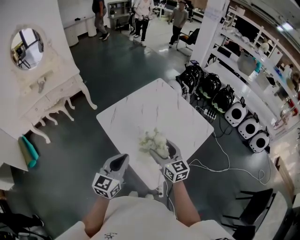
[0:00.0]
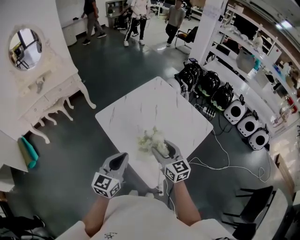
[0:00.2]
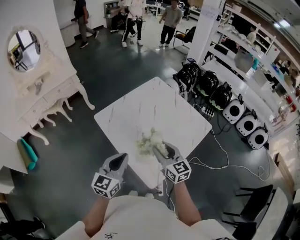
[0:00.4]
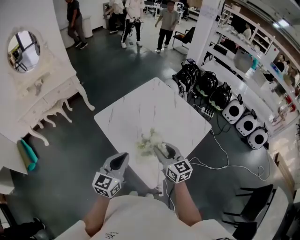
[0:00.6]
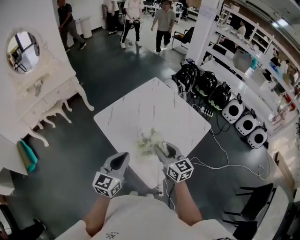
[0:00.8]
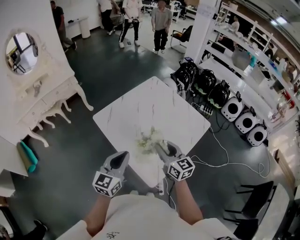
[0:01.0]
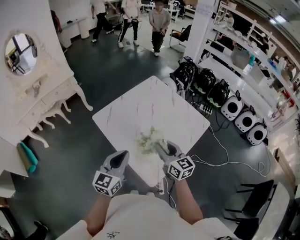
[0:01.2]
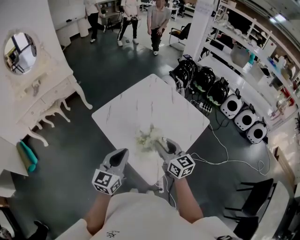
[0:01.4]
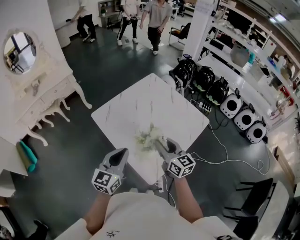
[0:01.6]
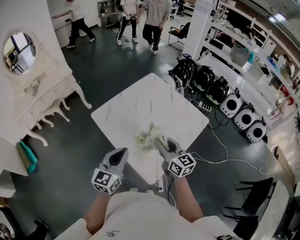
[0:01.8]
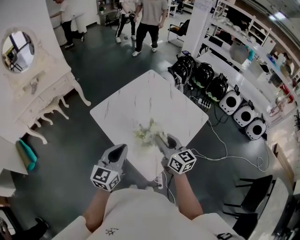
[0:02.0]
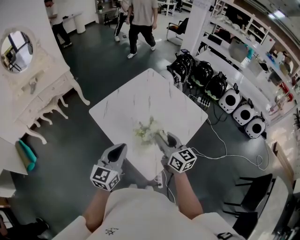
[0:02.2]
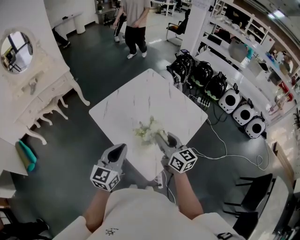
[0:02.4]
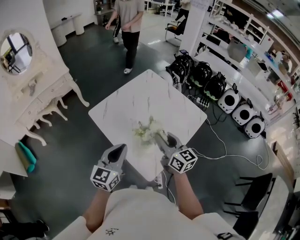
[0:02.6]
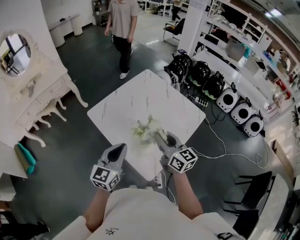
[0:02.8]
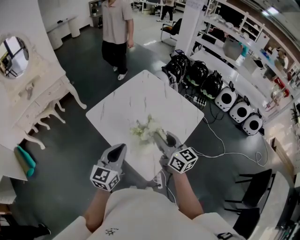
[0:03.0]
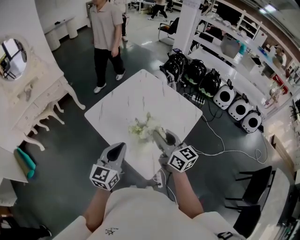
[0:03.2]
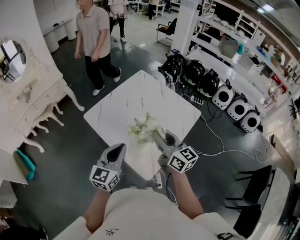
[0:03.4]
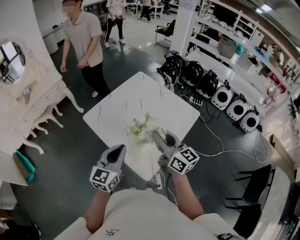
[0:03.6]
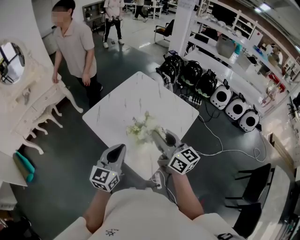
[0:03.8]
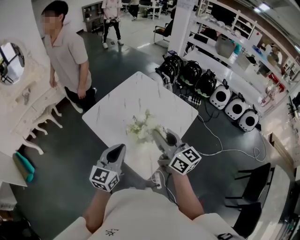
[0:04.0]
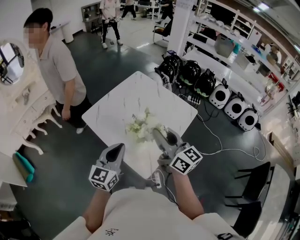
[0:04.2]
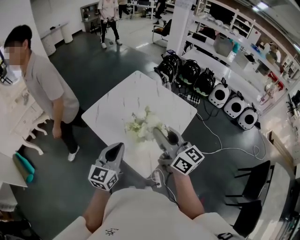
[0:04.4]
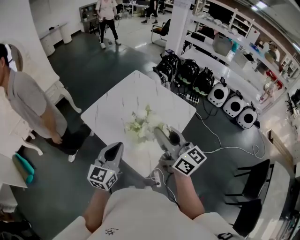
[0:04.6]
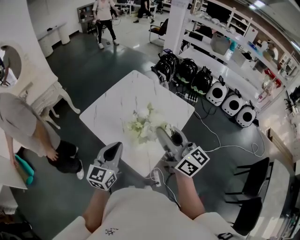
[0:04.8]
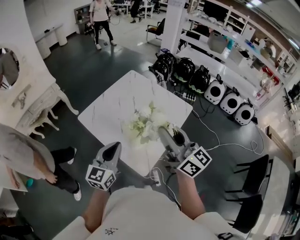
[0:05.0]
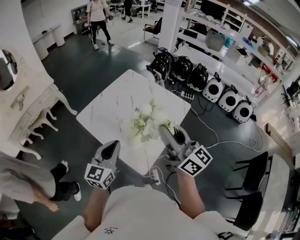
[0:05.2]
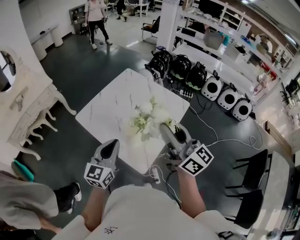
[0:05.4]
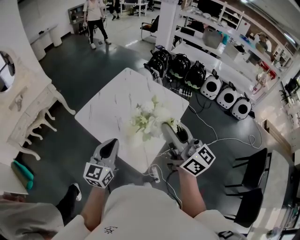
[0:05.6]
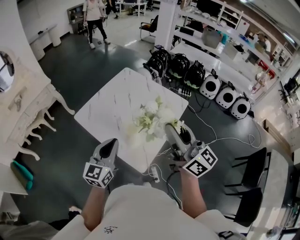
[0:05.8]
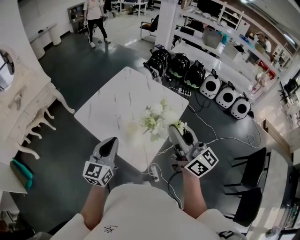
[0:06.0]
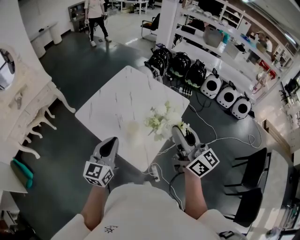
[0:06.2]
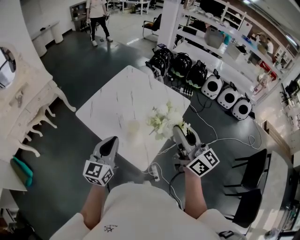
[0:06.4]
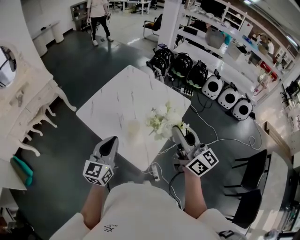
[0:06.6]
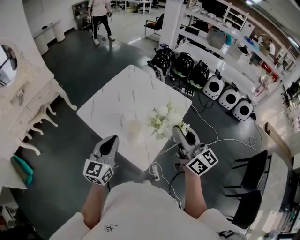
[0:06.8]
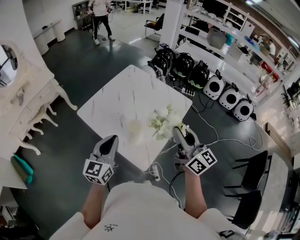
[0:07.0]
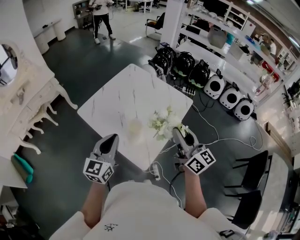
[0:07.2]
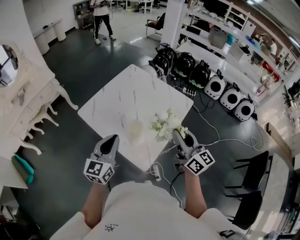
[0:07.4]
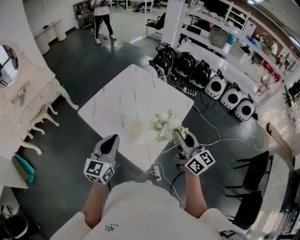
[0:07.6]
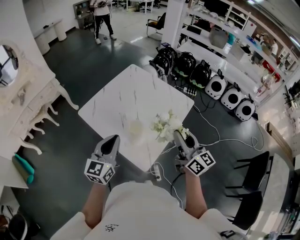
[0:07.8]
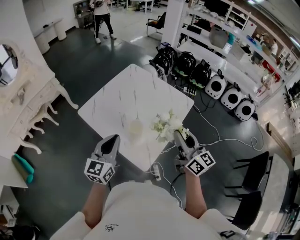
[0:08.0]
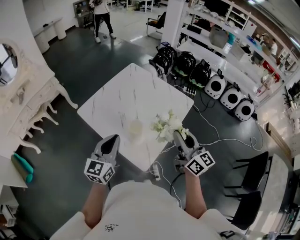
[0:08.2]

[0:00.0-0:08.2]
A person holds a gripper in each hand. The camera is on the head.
0:00.0 to 0:01.6: The right gripper closes its fingers.
0:01.6 to 0:03.2: The right gripper moves upward, approximately 5 cm.
0:03.2 to 0:05.0: The right gripper is displaced upward and backward by roughly 15 cm.
0:05.0 to 0:06.6: The right gripper changes place by approximately 5 cm.
0:06.6 to 0:08.2: The right gripper moves downward, roughly 5 cm.

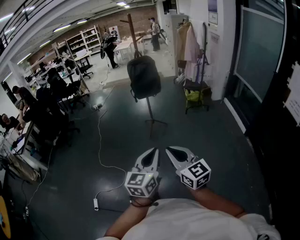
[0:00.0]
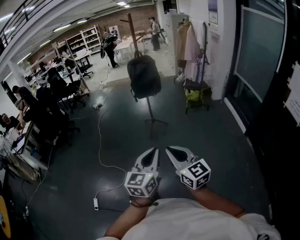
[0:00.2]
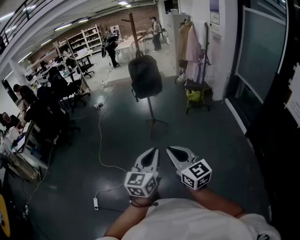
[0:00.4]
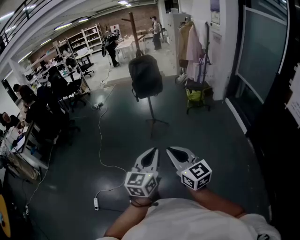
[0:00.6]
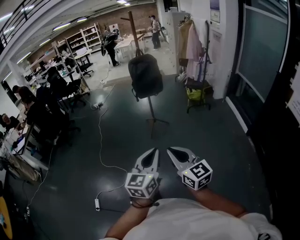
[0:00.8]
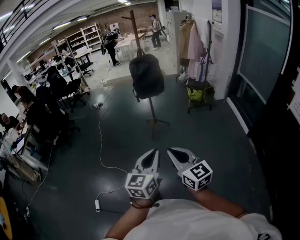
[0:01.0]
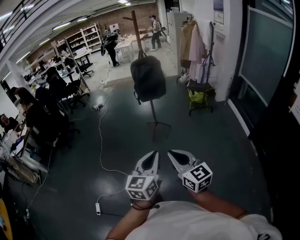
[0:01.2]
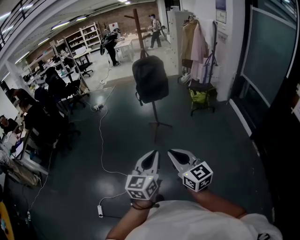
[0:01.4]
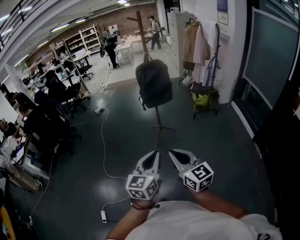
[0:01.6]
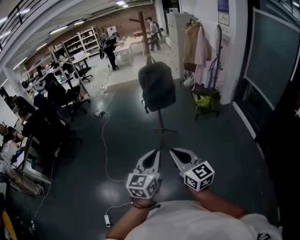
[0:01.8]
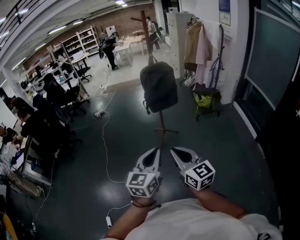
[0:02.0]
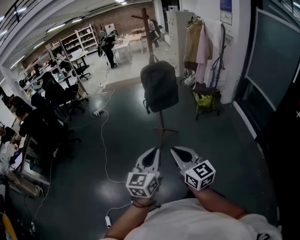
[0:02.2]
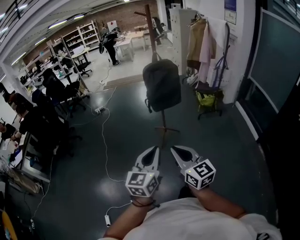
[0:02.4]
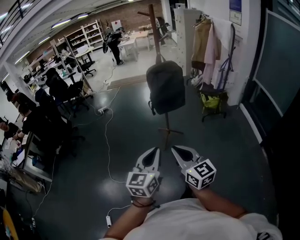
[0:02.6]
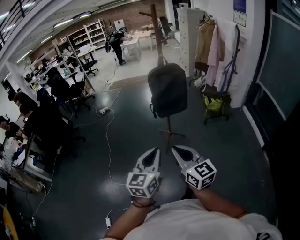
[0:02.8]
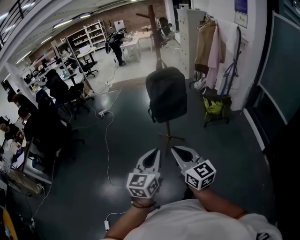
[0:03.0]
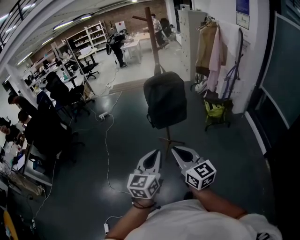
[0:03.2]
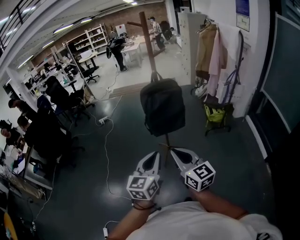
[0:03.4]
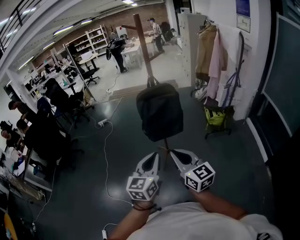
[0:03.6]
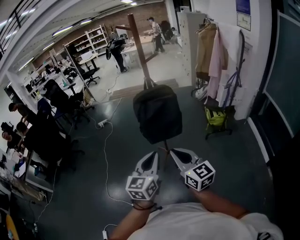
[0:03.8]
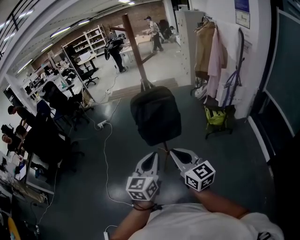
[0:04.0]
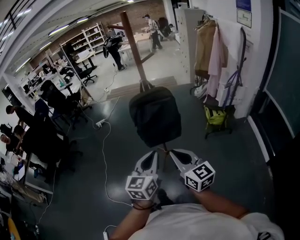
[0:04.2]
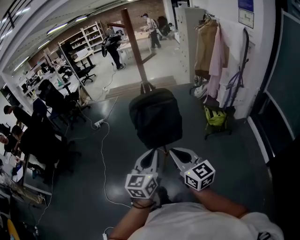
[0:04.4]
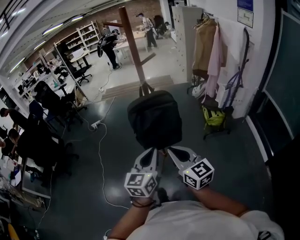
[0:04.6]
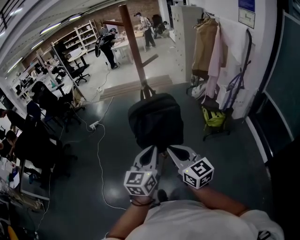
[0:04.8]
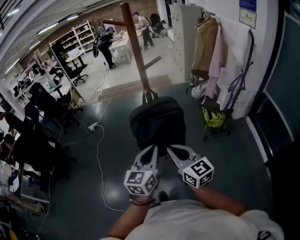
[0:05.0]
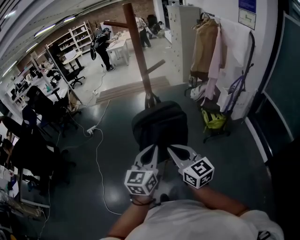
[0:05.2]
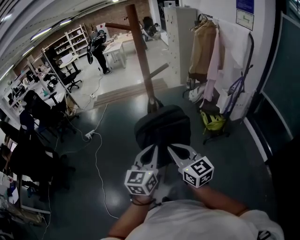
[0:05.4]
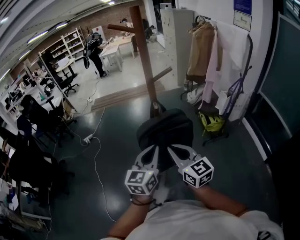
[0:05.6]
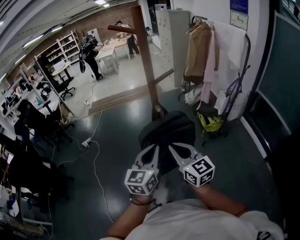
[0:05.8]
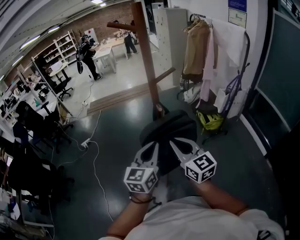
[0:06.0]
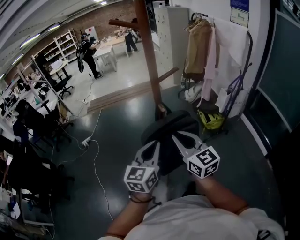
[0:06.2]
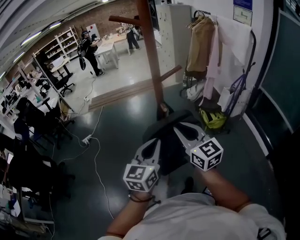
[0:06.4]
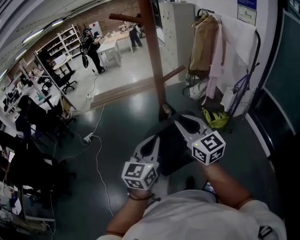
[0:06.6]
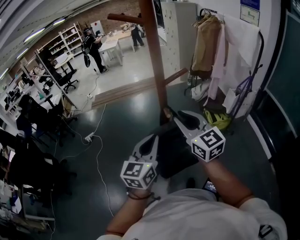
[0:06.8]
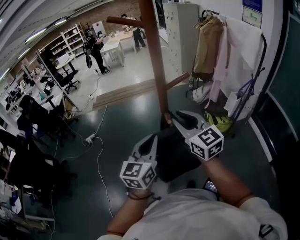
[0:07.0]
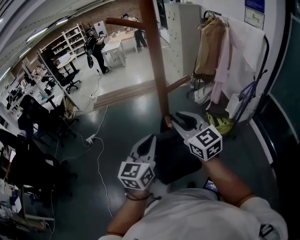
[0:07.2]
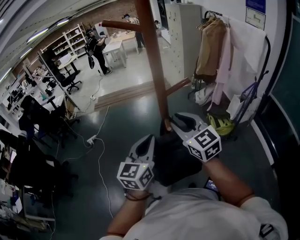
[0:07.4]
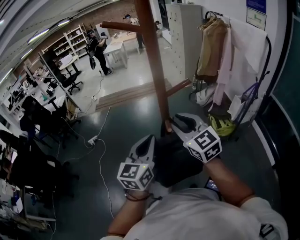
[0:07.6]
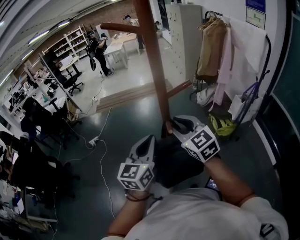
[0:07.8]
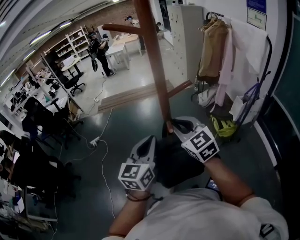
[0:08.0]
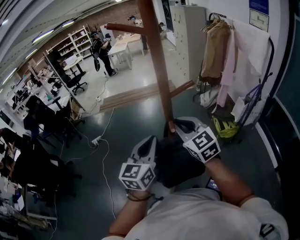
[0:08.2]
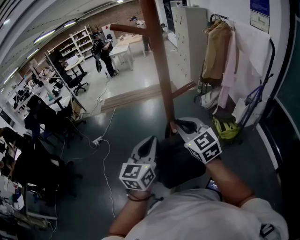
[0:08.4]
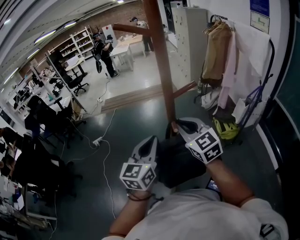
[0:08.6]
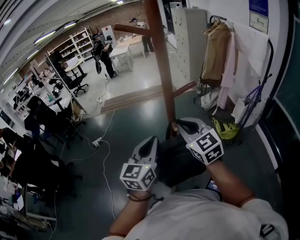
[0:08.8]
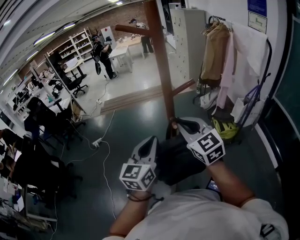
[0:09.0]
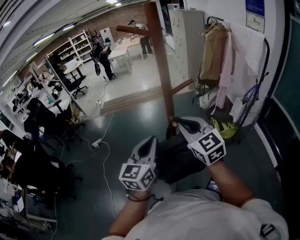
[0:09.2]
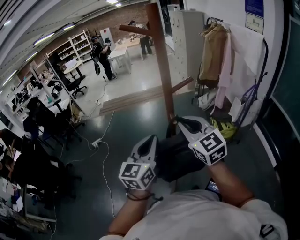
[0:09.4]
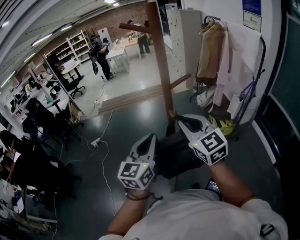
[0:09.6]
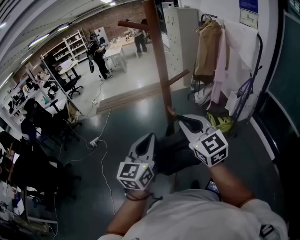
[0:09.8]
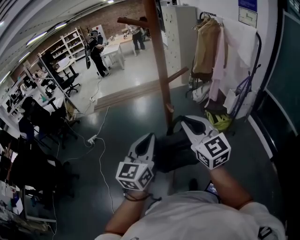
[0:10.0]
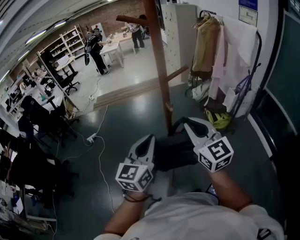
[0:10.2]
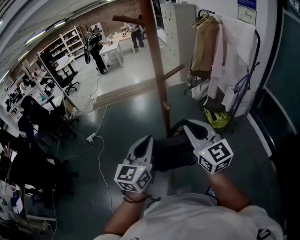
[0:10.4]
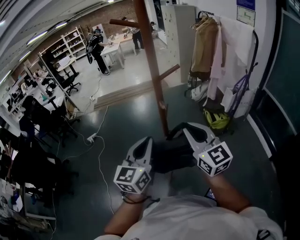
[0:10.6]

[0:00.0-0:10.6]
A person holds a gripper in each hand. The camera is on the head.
0:00.0 to 0:01.6: The grippers both shift forward and to the left by approximately 25 cm.
0:01.6 to 0:03.0: Both grippers move forward, some 25 cm.
0:03.0 to 0:04.6: The two grippers go about 35 cm forward and to the right.
0:04.6 to 0:06.0: Both grippers move forward, roughly 20 cm.
0:06.0 to 0:07.6: Both grippers move forward, about 15 cm.
0:07.6 to 0:09.0: The grippers make only small movements.
0:09.0 to 0:10.6: Both grippers move backward, roughly 10 cm.

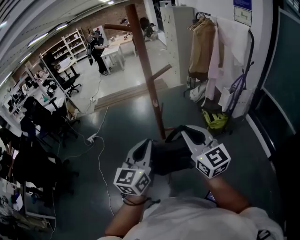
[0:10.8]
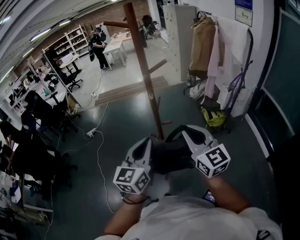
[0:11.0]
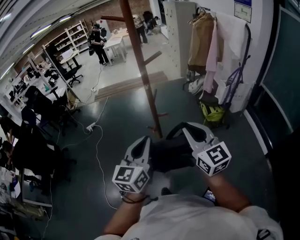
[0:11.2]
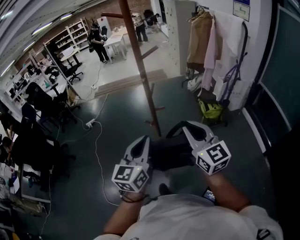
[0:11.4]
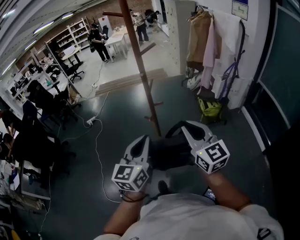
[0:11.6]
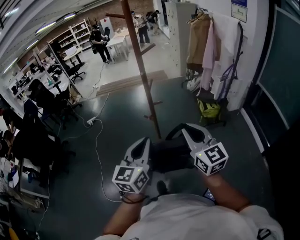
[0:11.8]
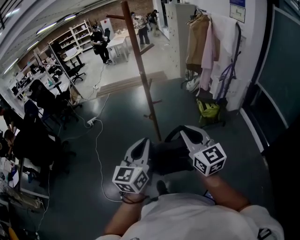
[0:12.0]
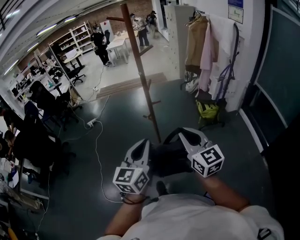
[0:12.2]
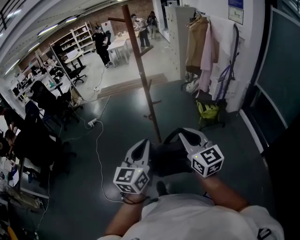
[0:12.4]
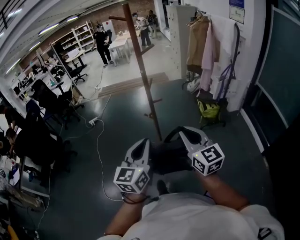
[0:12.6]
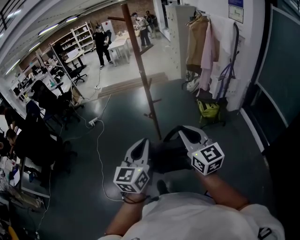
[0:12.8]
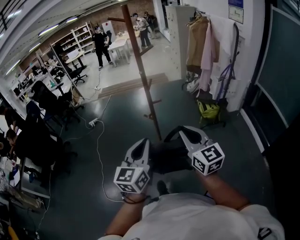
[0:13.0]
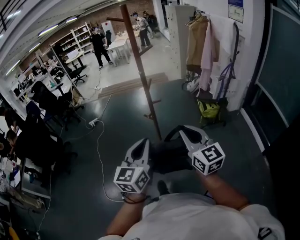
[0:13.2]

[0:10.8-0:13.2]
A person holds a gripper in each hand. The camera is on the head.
0:10.8 to 0:12.0: The grippers both shift backward by some 25 cm.
0:12.0 to 0:13.2: The grippers stay close to where they were, moving slightly.

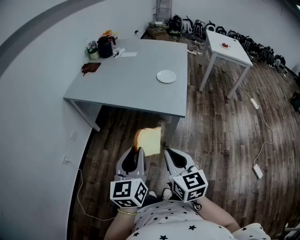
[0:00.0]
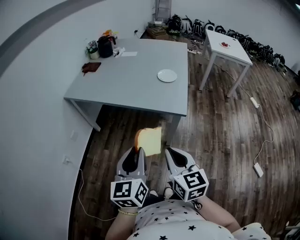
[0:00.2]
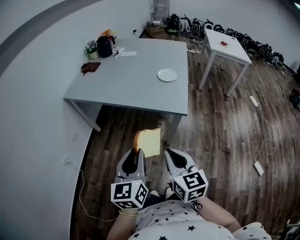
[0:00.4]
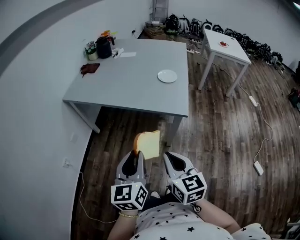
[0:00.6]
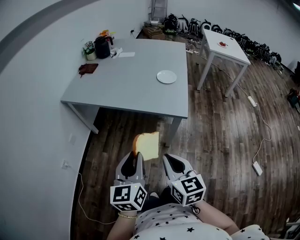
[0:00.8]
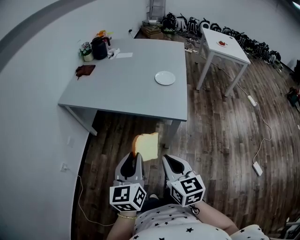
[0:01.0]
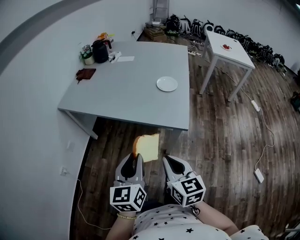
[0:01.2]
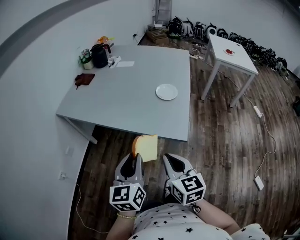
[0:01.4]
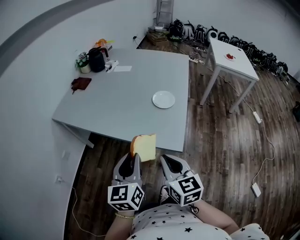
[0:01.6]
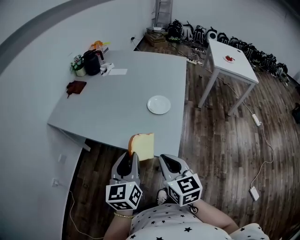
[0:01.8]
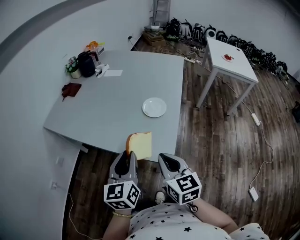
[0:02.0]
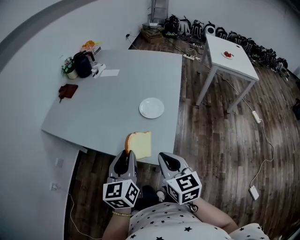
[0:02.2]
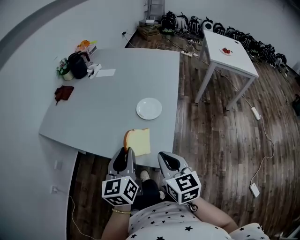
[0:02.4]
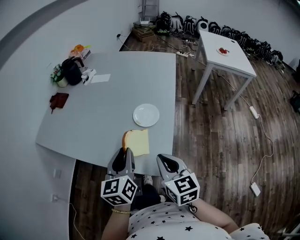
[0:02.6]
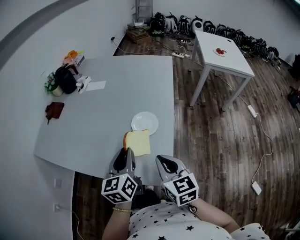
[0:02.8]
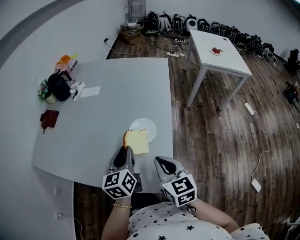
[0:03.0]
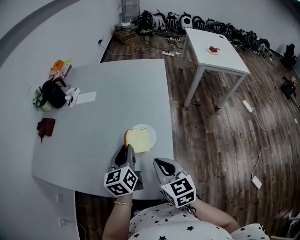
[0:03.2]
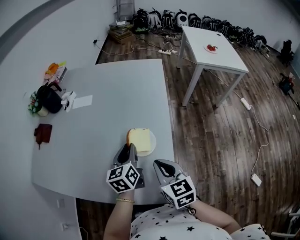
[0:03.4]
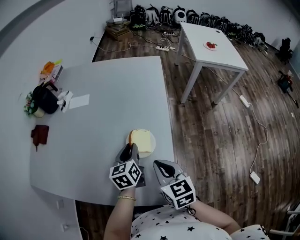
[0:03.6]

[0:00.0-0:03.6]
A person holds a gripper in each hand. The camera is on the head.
0:00.0 to 0:01.8: The grippers both shift forward by roughly 25 cm.
0:01.8 to 0:03.6: Both grippers travel together forward, approximately 30 cm. The left gripper rotates approximately 20 degrees.
